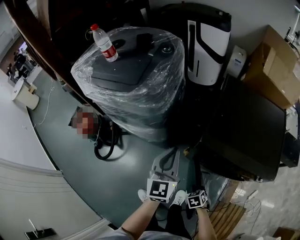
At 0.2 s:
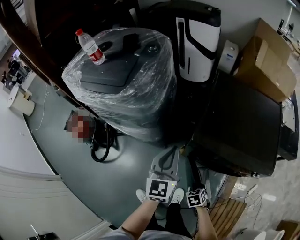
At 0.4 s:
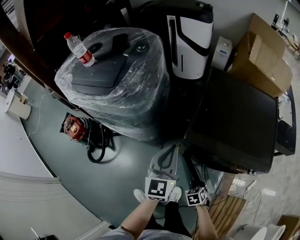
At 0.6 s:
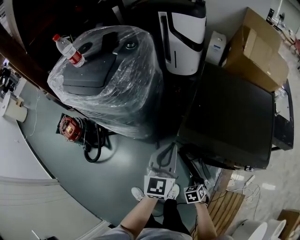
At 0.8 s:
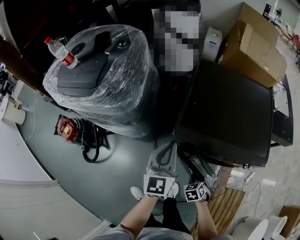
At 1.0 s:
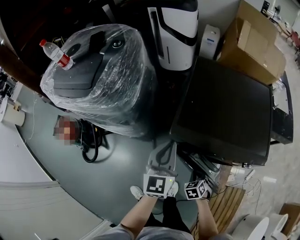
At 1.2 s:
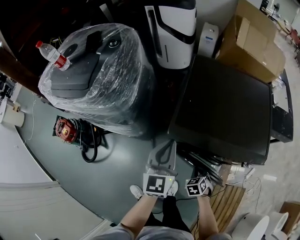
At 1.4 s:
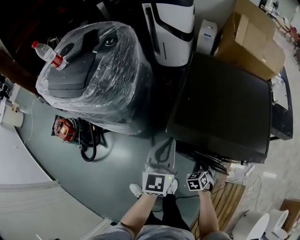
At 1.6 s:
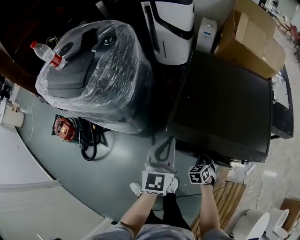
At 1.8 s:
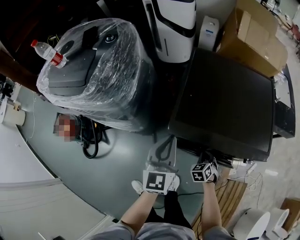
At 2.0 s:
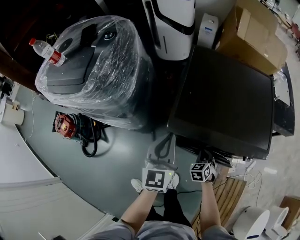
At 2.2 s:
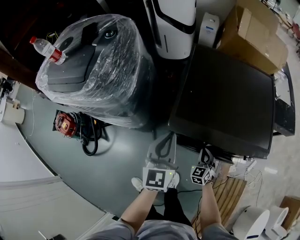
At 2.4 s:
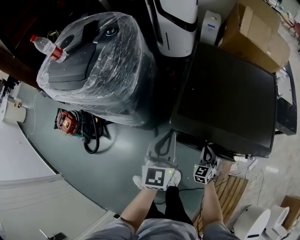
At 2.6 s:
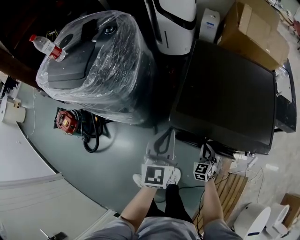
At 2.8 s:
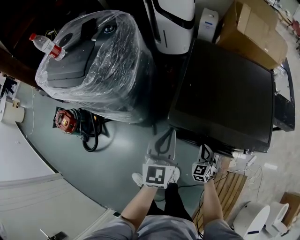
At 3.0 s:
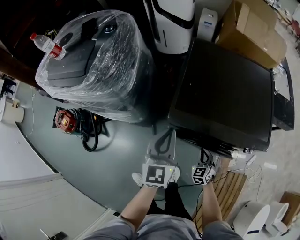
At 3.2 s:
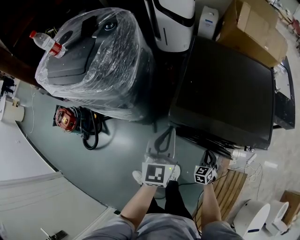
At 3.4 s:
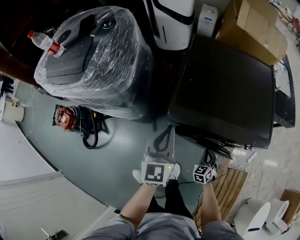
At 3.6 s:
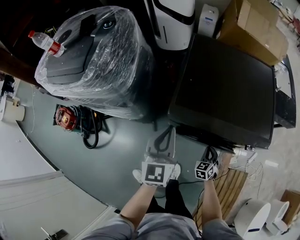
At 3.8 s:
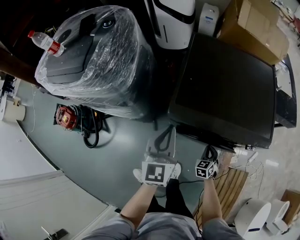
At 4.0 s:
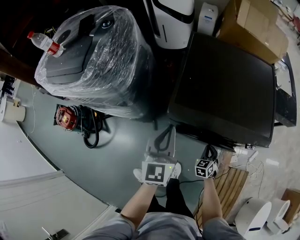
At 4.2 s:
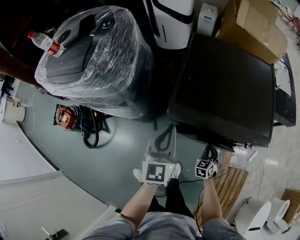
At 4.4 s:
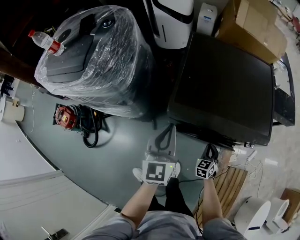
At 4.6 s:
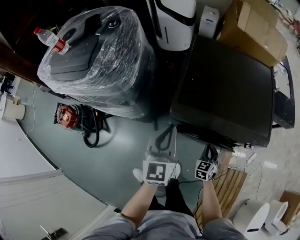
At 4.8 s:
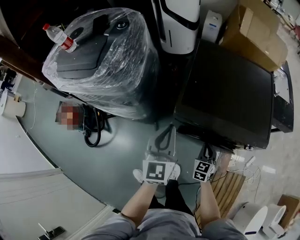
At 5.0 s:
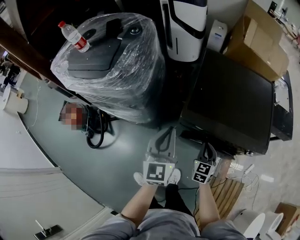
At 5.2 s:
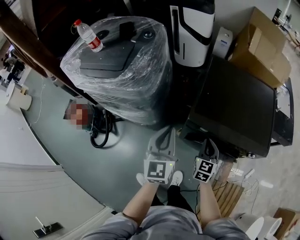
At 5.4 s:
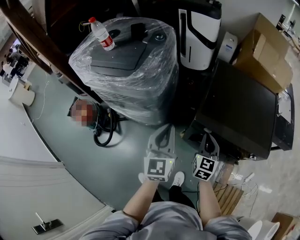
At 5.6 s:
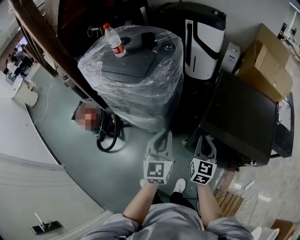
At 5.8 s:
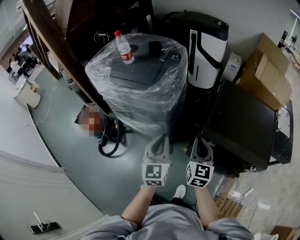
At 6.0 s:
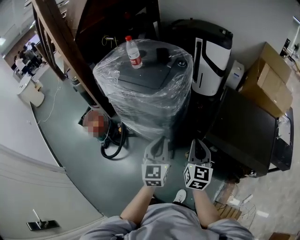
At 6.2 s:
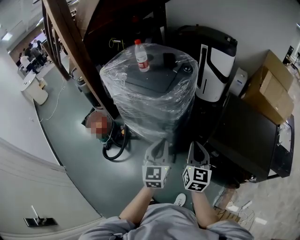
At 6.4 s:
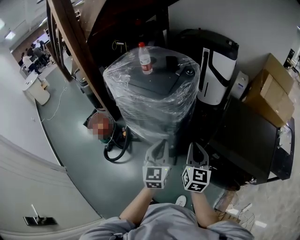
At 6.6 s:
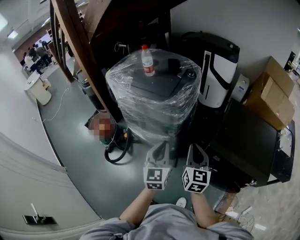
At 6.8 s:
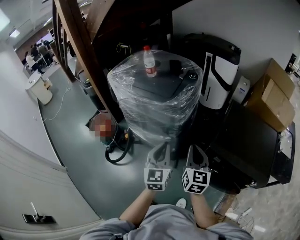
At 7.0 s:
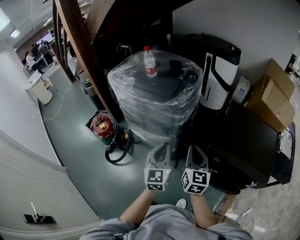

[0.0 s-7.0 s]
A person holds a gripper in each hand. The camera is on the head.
0.0 to 1.4 s: The right gripper shifts some 15 cm to the right and forward. The left gripper goes approximately 15 cm to the right.
1.4 to 2.8 s: The right gripper swivels roughly 30 degrees.
2.8 to 4.2 s: The right gripper shifts roughly 5 cm to the right.
4.2 to 5.6 s: The right gripper travels upward and to the left by roughly 40 cm, and turns by some 40 degrees. The left gripper moves to the left, upward and backward, some 20 cm.
5.6 to 7.0 s: The right gripper shifts some 15 cm to the left and upward. The left gripper is displaced to the left by about 10 cm.

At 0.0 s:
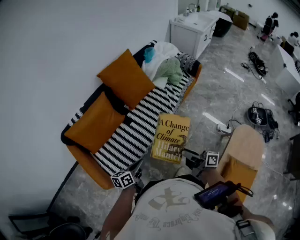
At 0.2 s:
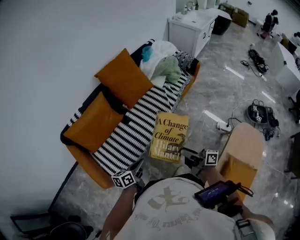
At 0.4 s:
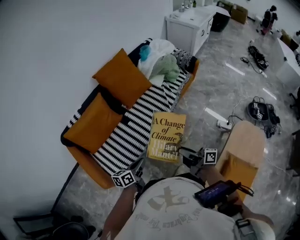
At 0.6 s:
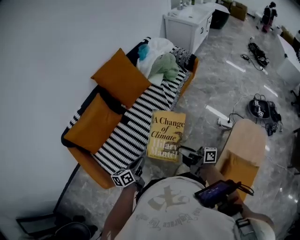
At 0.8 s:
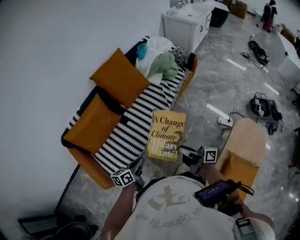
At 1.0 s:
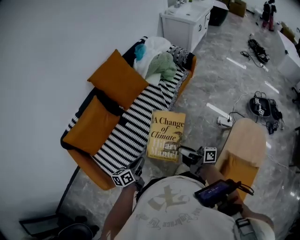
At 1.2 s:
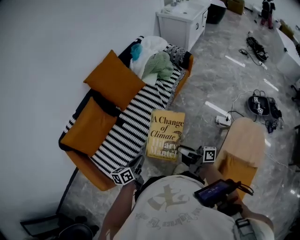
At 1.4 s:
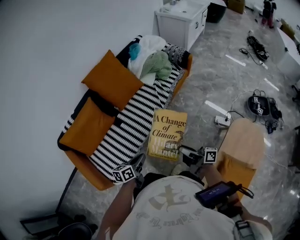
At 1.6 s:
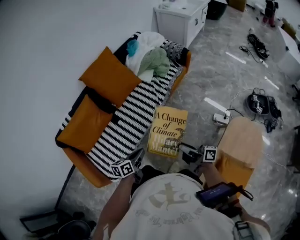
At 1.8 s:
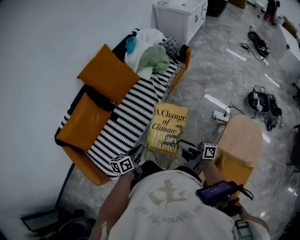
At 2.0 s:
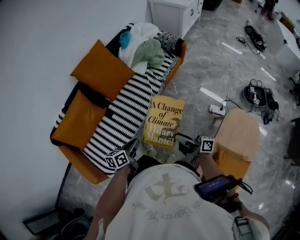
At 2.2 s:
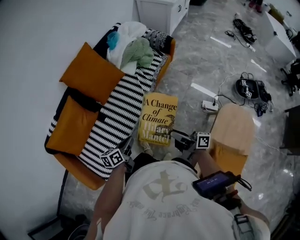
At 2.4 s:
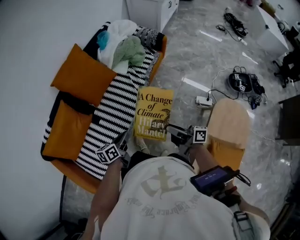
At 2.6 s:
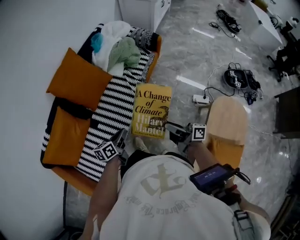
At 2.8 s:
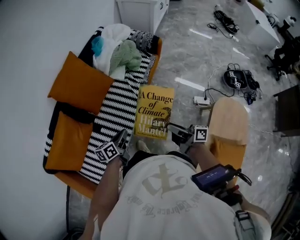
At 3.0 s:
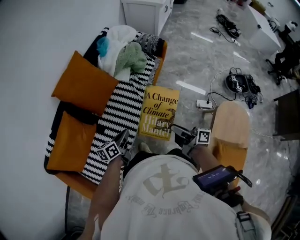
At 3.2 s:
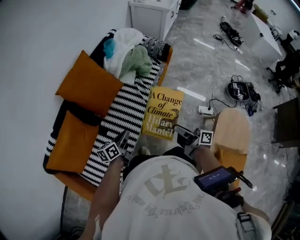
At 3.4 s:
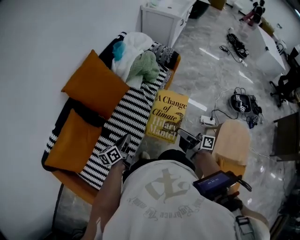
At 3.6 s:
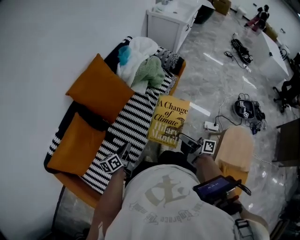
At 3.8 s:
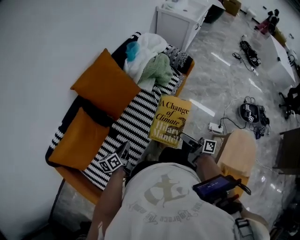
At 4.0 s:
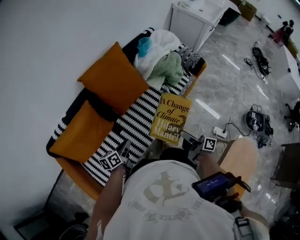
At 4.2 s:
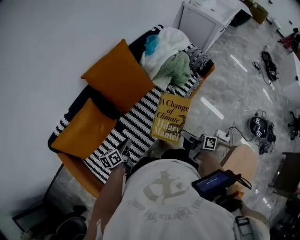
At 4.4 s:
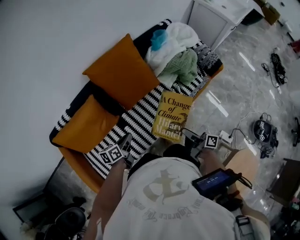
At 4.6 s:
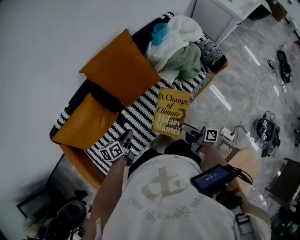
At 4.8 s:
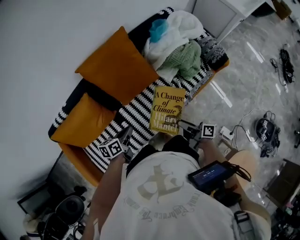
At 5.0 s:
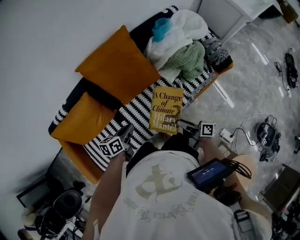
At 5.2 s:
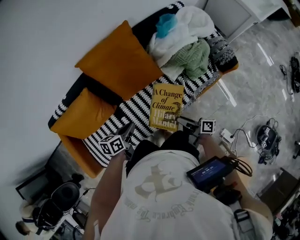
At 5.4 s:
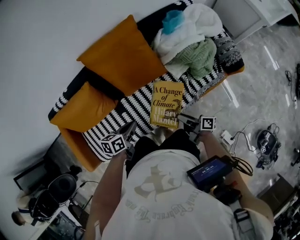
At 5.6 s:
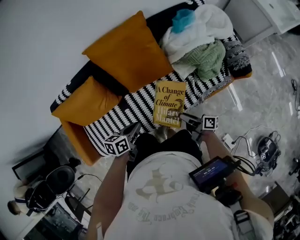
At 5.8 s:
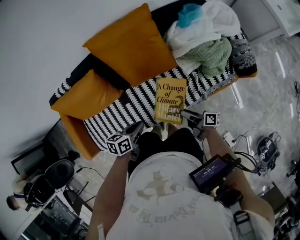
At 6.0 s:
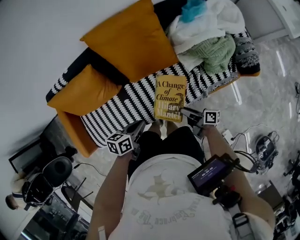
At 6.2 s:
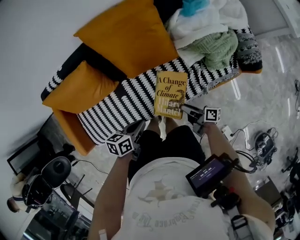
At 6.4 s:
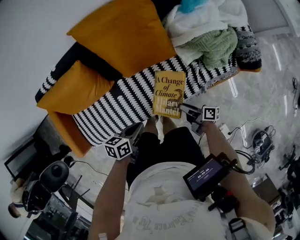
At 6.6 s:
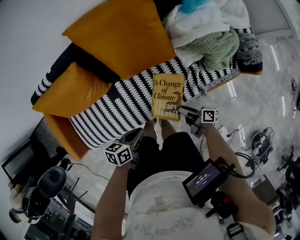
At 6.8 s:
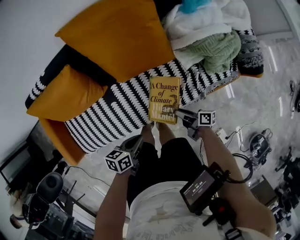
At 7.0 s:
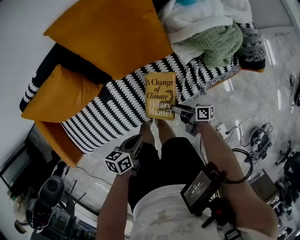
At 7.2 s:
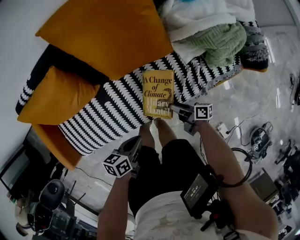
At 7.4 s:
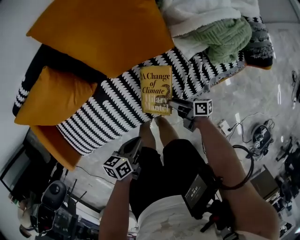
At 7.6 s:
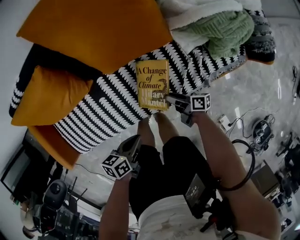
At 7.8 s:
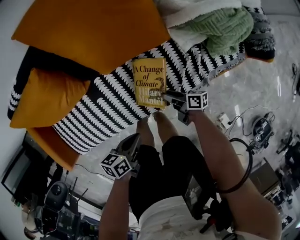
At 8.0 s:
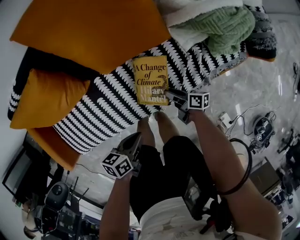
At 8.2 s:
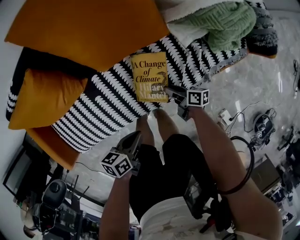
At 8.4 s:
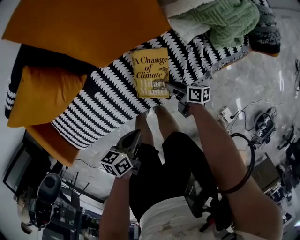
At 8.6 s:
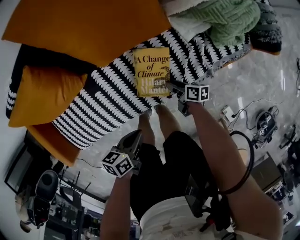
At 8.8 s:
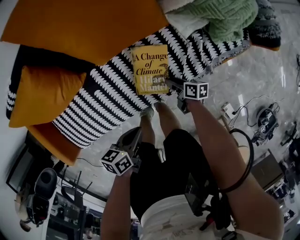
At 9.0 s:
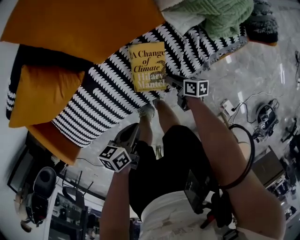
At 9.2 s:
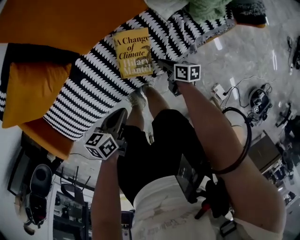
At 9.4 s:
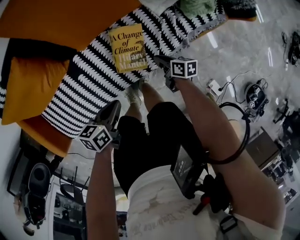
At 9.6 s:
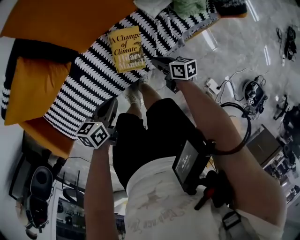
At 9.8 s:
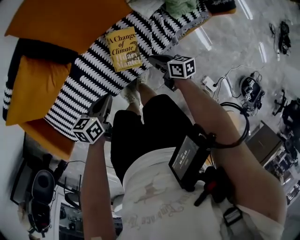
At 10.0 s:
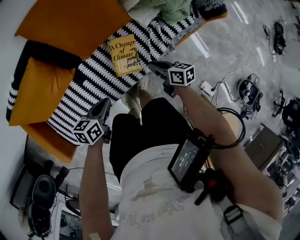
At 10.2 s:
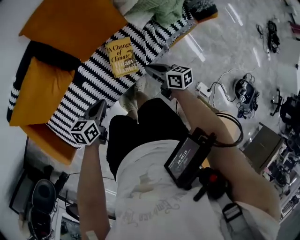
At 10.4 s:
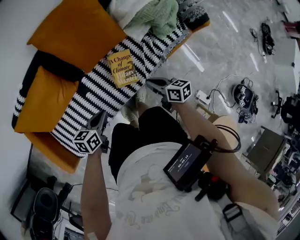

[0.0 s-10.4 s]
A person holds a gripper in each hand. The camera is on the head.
0.0 to 1.4 s: The grippers both shift to the right by about 10 cm.
1.4 to 3.0 s: The left gripper shifts roughly 20 cm forward; the right gripper shifts approximately 10 cm forward.
3.0 to 4.4 s: The right gripper is displaced forward and downward by some 25 cm, and changes its angle by roughly 20 degrees. The left gripper travels to the left and forward by some 20 cm, and turns by some 30 degrees.
4.4 to 6.0 s: The right gripper goes some 20 cm downward and forward, and turns by some 30 degrees, while the left gripper is displaced to the right by approximately 10 cm.
6.0 to 7.4 s: The left gripper moves downward and backward, about 15 cm. The right gripper shifts approximately 15 cm downward.
7.4 to 9.0 s: The right gripper travels downward by approximately 5 cm, and swivels some 20 degrees.
9.0 to 10.4 s: The left gripper heads upward and to the left, covering approximately 15 cm, and changes its angle by roughly 20 degrees, while the right gripper moves upward, some 25 cm, swivels roughly 30 degrees, and closes.

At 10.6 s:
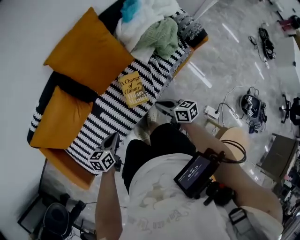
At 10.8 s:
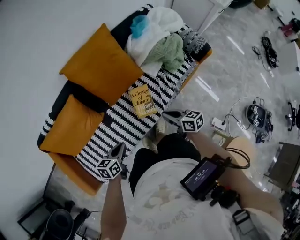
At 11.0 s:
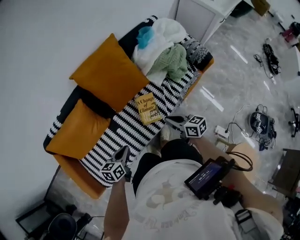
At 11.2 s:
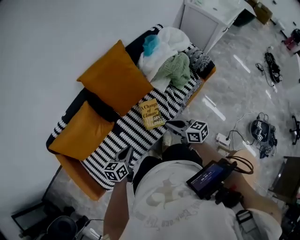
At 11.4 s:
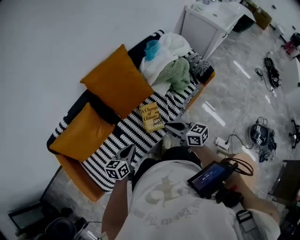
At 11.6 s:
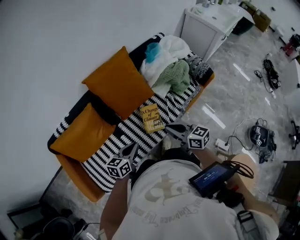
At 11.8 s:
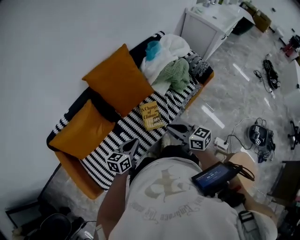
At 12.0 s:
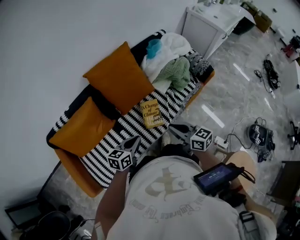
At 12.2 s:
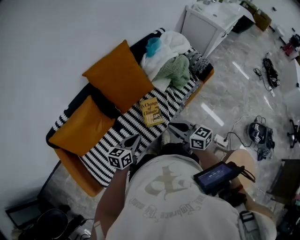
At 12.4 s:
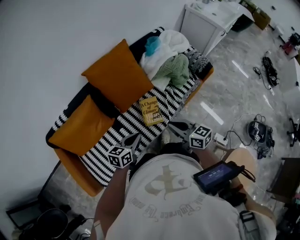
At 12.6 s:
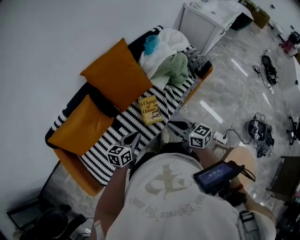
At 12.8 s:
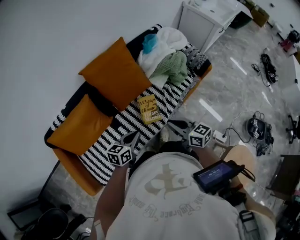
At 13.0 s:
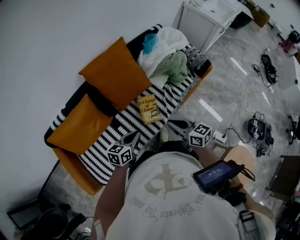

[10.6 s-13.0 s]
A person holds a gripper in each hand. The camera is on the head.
10.6 to 11.8 s: The right gripper moves upward, about 20 cm, and swivels about 20 degrees. The left gripper travels upward by roughly 10 cm.
11.8 to 13.0 s: The grippers stay close to where they were, moving slightly.

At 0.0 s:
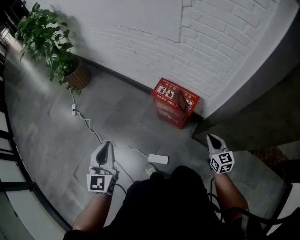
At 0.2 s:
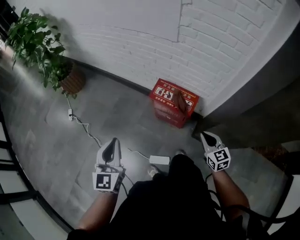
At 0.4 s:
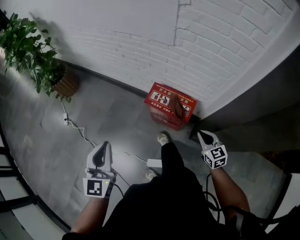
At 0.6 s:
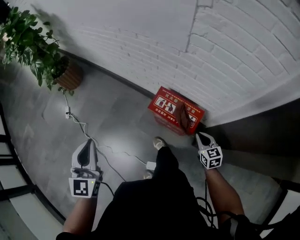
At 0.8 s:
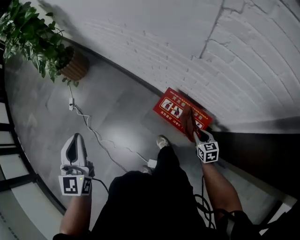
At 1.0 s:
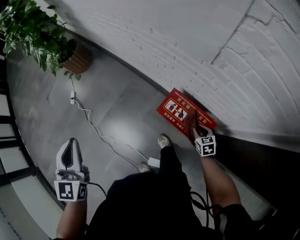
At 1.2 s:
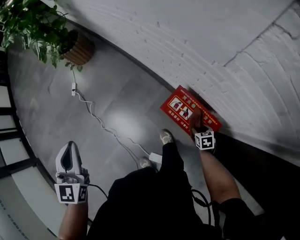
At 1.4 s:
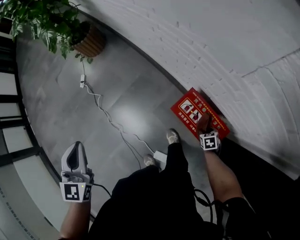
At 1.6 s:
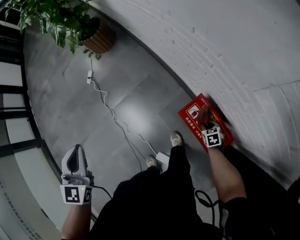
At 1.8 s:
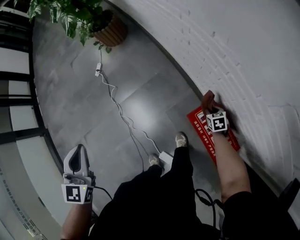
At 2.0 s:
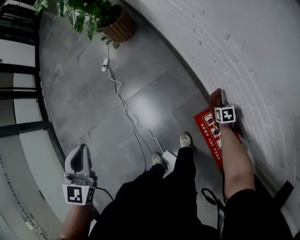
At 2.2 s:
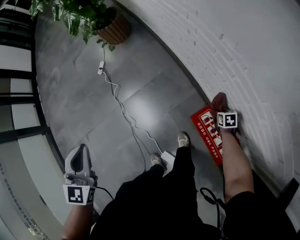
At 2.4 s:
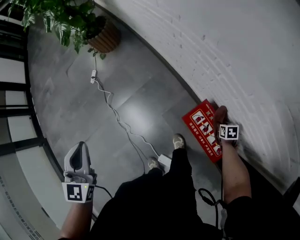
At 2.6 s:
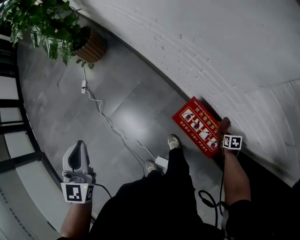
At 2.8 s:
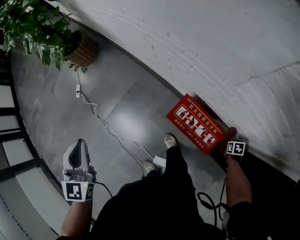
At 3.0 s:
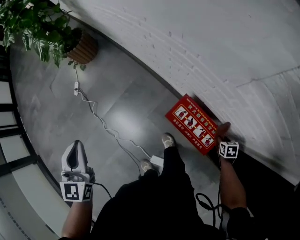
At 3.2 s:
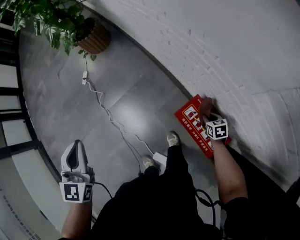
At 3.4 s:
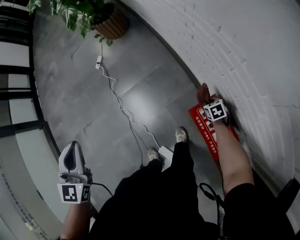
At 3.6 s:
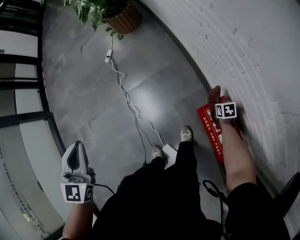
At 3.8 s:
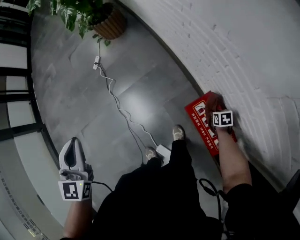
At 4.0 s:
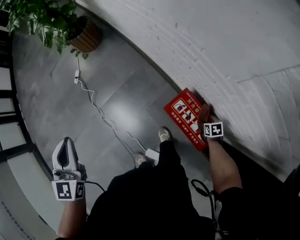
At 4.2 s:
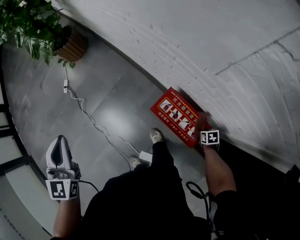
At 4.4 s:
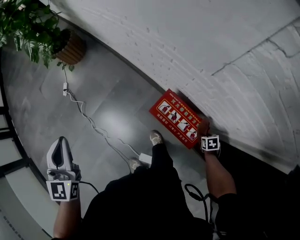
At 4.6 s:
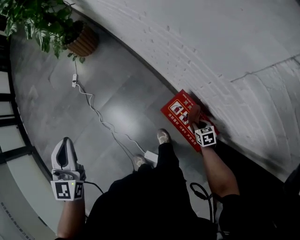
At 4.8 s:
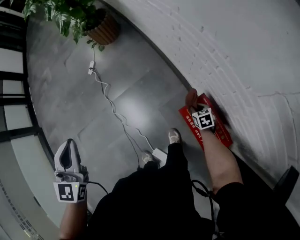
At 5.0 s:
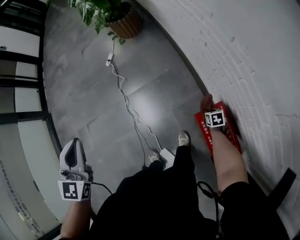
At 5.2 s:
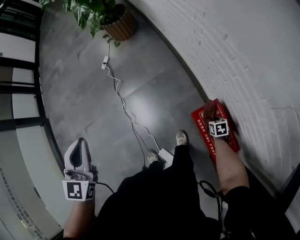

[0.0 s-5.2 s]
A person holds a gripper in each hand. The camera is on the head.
0.0 to 1.8 s: The right gripper changes place by roughly 60 cm, angles its fingers downward, by about 30 degrees, and opens, then closes again. The left gripper moves about 25 cm, and turns by about 30 degrees.
